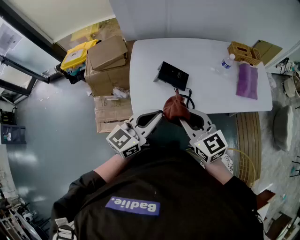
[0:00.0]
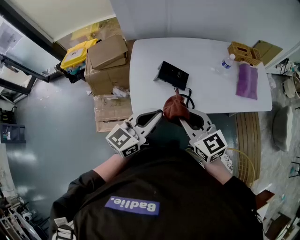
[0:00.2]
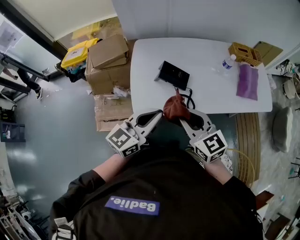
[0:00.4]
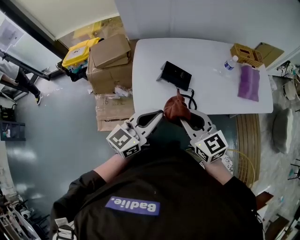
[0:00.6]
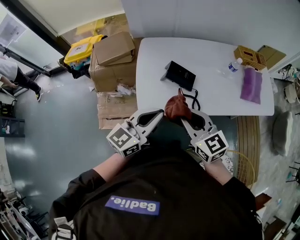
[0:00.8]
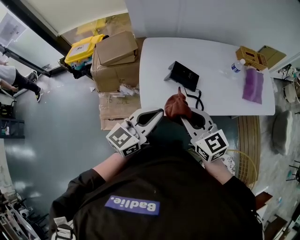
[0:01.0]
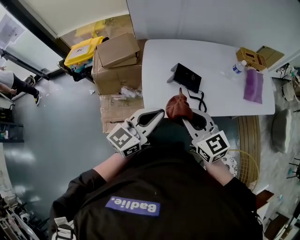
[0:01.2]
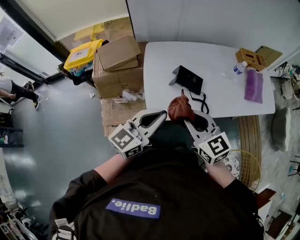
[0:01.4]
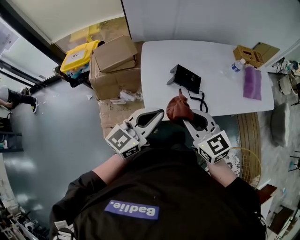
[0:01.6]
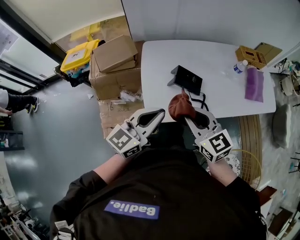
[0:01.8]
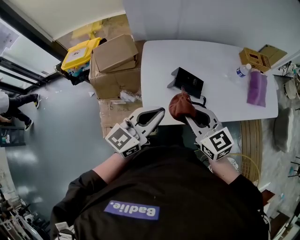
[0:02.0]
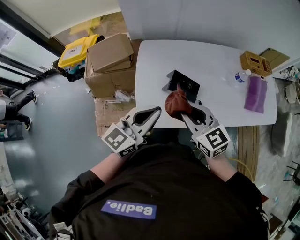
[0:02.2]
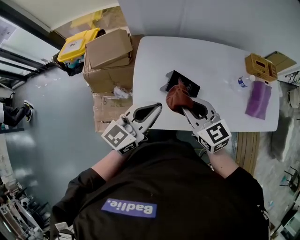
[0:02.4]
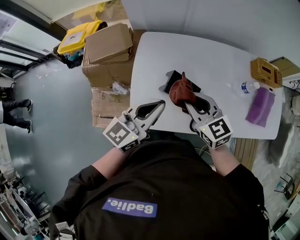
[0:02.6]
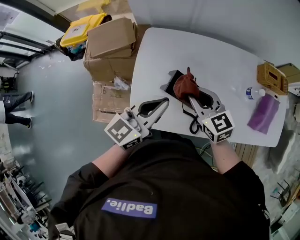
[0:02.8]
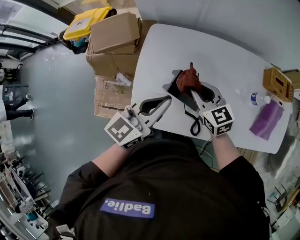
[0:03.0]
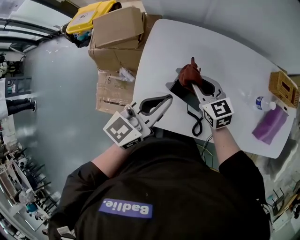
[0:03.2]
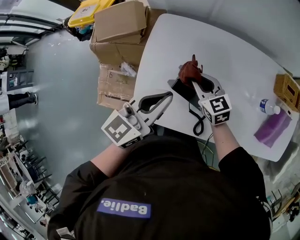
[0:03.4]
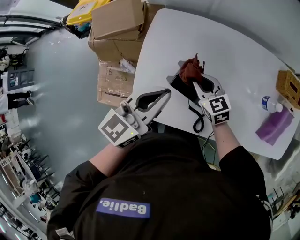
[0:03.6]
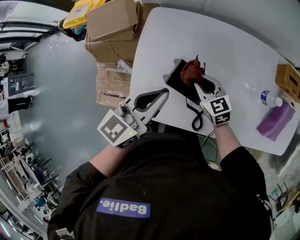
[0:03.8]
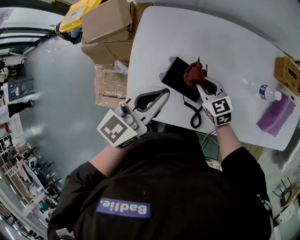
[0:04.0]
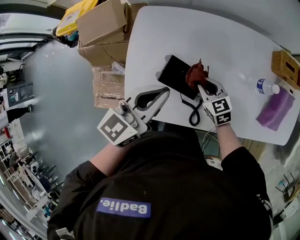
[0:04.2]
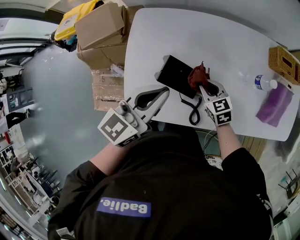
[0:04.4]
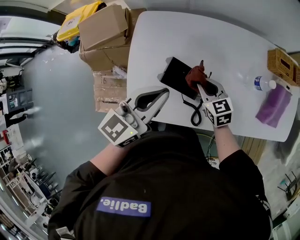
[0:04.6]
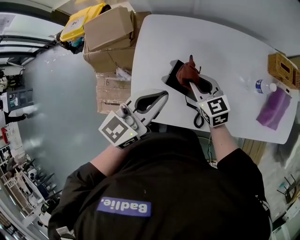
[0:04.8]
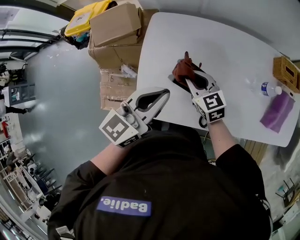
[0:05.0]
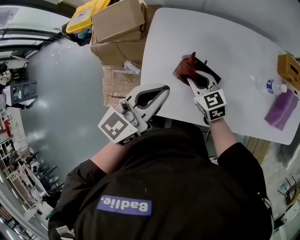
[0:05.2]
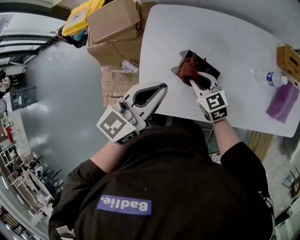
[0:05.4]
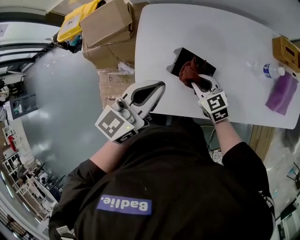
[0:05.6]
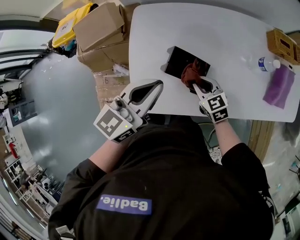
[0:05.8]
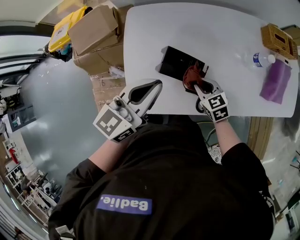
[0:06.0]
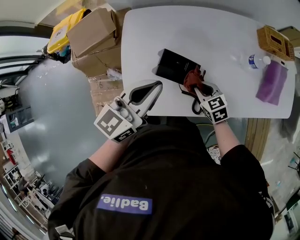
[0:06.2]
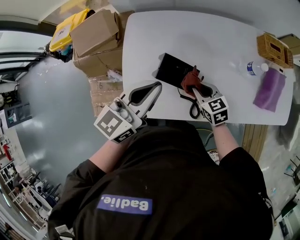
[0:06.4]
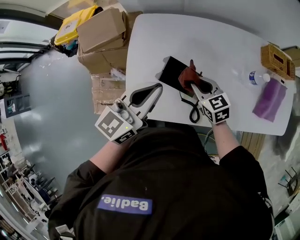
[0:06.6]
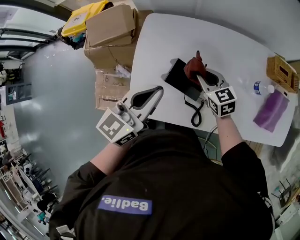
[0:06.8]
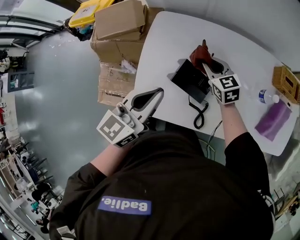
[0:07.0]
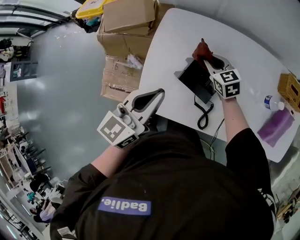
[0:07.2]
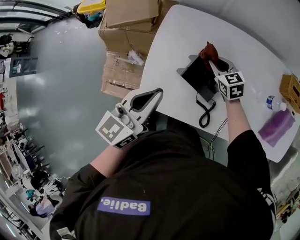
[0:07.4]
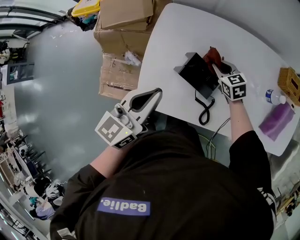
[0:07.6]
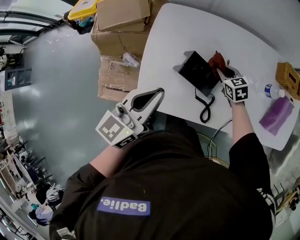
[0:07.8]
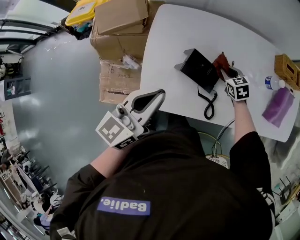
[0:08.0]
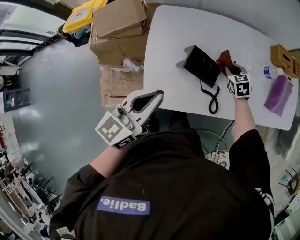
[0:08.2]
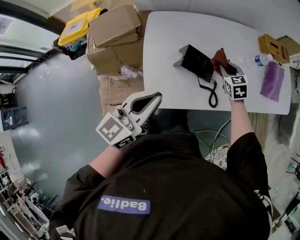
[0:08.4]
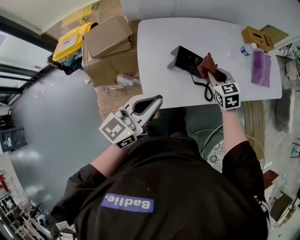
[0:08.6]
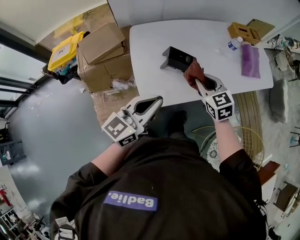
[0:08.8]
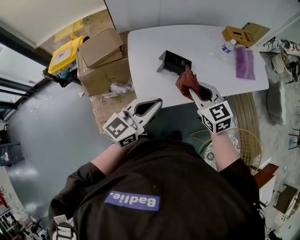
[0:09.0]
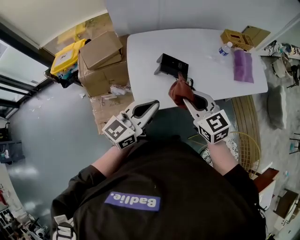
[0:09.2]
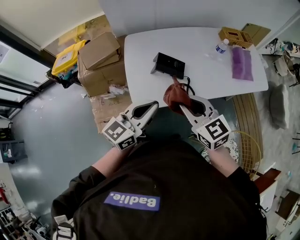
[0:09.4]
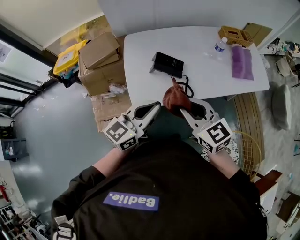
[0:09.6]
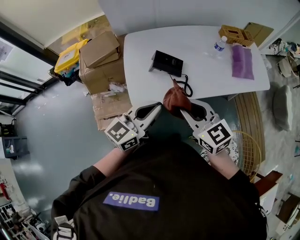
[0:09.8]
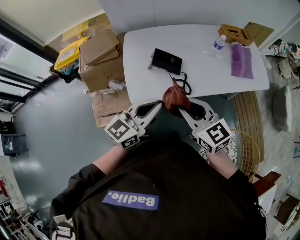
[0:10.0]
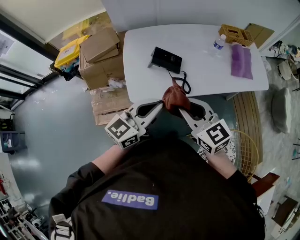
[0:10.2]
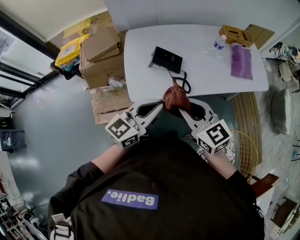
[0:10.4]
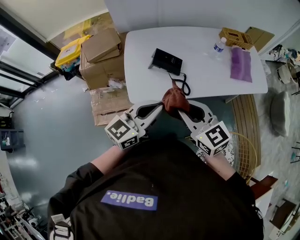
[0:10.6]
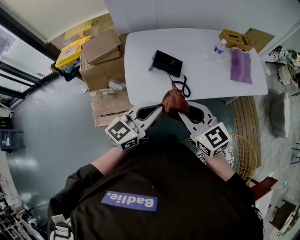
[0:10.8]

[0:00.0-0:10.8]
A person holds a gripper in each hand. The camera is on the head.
0.0 to 1.6 s: The two grippers go about 10 cm to the left.
1.6 to 3.0 s: The left gripper shifts roughly 20 cm forward and to the right. The right gripper is displaced forward and downward by about 30 cm.
3.0 to 4.6 s: The right gripper heads downward and to the right, covering roughly 10 cm.
4.6 to 6.2 s: The right gripper heads backward, covering some 5 cm, and goes to the left and returns, approximately 10 cm each way.
6.2 to 7.8 s: The right gripper is displaced forward by about 15 cm; the left gripper is displaced to the left by about 10 cm.
7.8 to 9.2 s: The left gripper shifts by approximately 15 cm, and changes its angle by some 30 degrees; the right gripper moves about 40 cm, and rotates roughly 30 degrees.
9.2 to 10.8 s: The left gripper heads to the right, covering roughly 10 cm. The right gripper shifts about 10 cm backward.

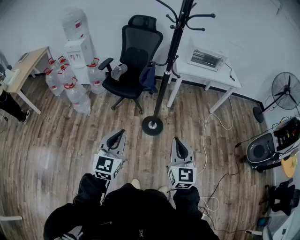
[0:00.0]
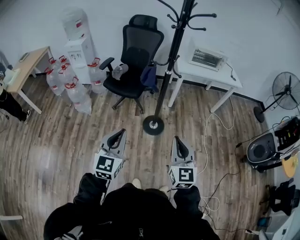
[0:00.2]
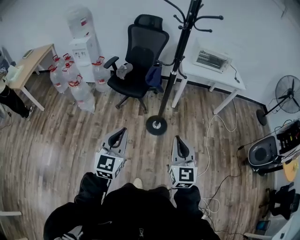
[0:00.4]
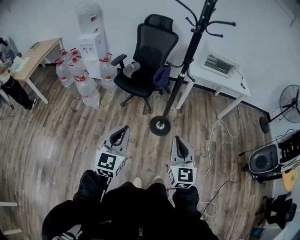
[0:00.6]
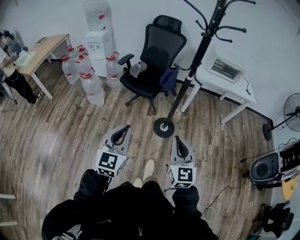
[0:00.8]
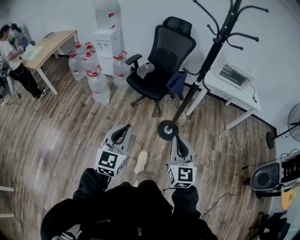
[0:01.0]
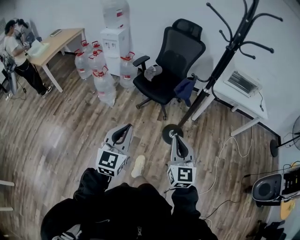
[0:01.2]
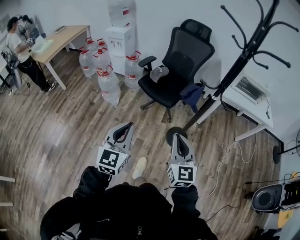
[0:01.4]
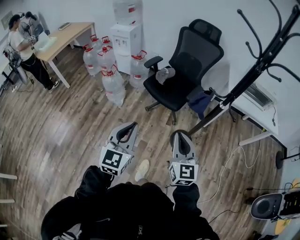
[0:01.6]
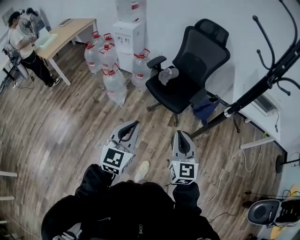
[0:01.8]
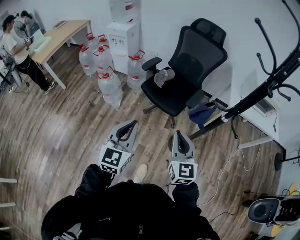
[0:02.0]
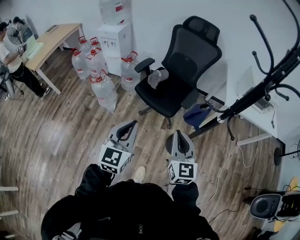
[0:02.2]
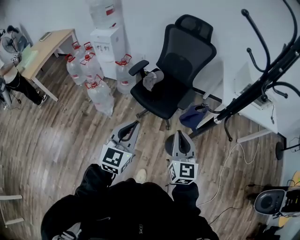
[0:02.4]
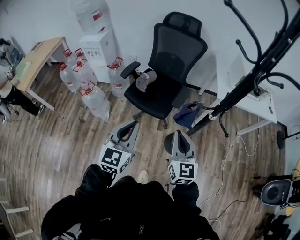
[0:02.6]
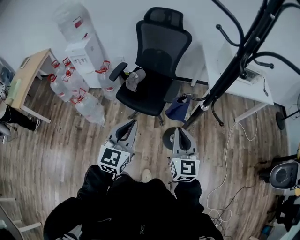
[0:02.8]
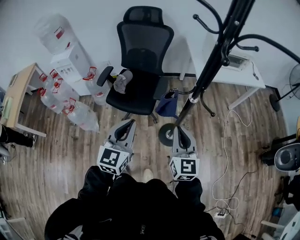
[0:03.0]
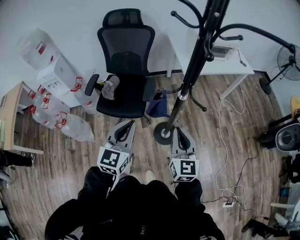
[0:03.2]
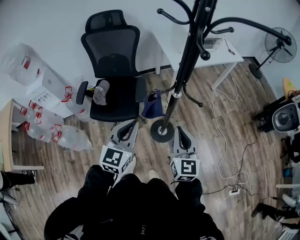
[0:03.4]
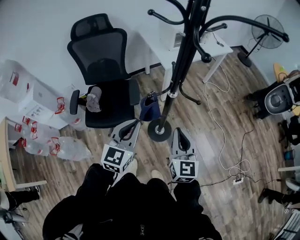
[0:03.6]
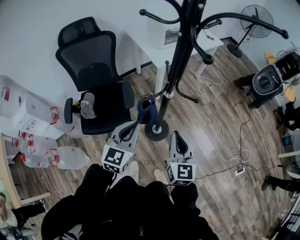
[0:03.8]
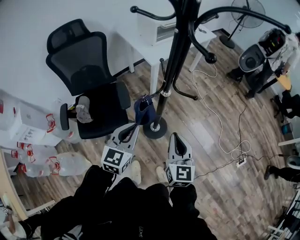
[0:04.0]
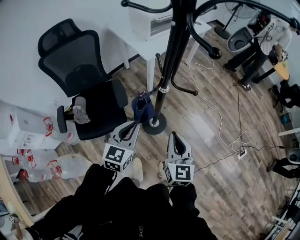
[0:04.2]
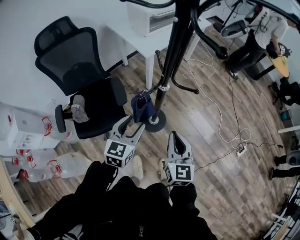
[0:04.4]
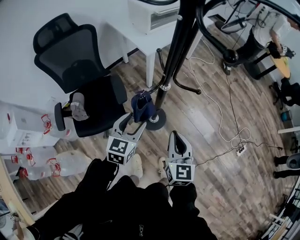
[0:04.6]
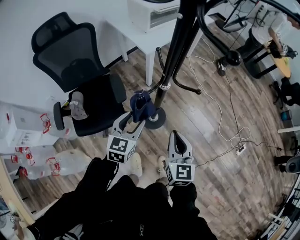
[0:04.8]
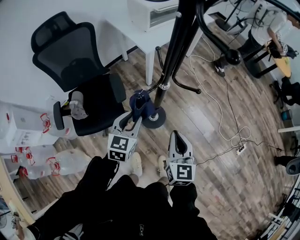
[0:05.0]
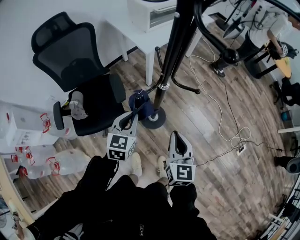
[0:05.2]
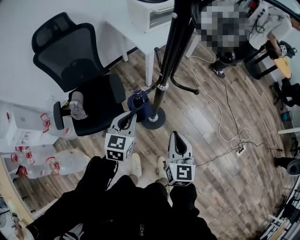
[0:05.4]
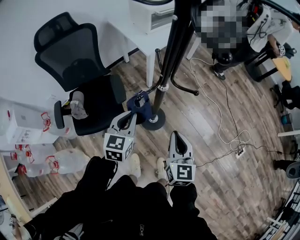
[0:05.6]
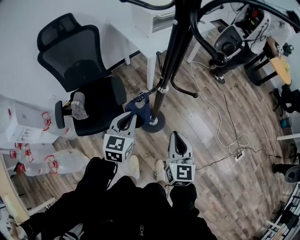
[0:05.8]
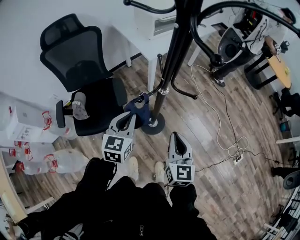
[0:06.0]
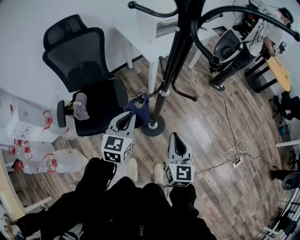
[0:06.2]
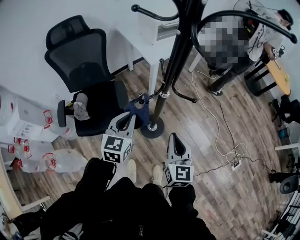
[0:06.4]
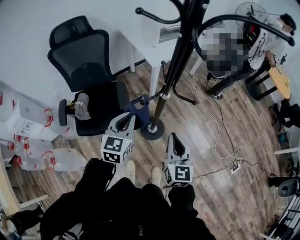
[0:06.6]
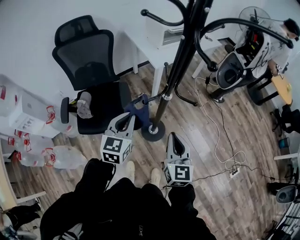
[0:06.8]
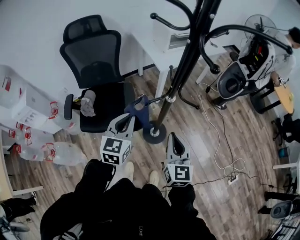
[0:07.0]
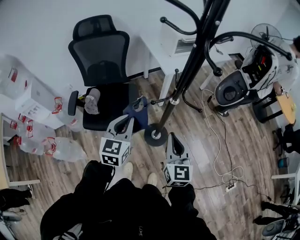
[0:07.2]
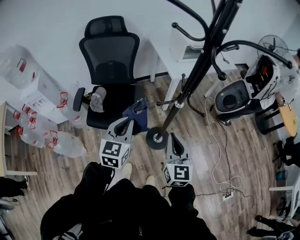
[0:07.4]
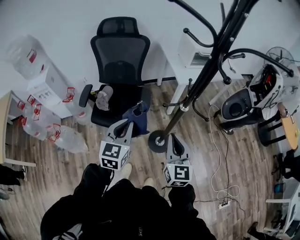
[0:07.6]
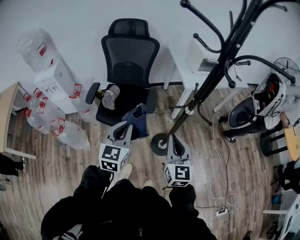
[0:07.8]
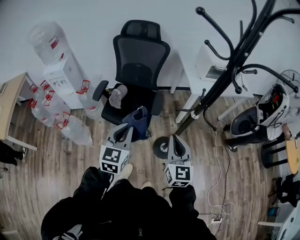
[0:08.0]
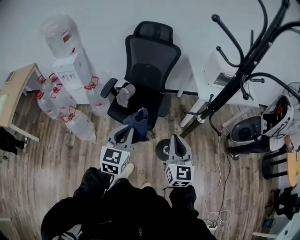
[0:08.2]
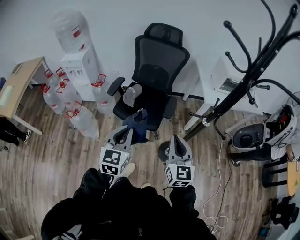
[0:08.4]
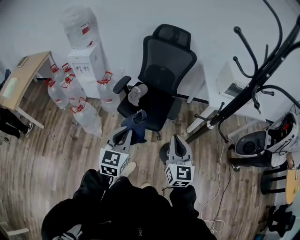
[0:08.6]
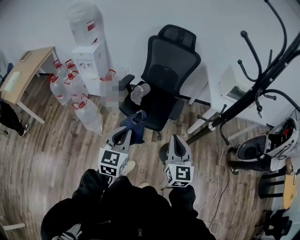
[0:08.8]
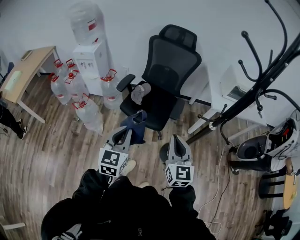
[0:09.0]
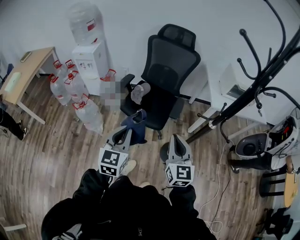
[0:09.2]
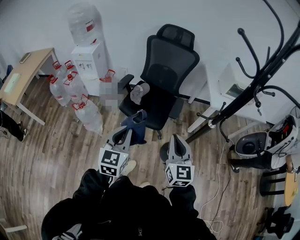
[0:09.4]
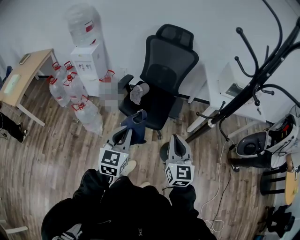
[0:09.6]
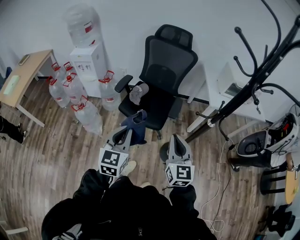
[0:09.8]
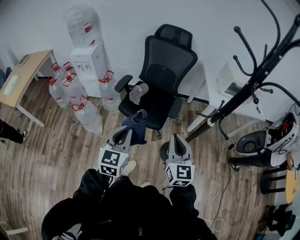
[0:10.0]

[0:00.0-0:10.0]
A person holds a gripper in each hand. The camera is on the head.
0.0 to 1.4 s: The left gripper heads to the left and forward, covering roughly 20 cm. Meanwhile the right gripper goes approximately 25 cm forward and to the left.
1.4 to 2.8 s: Both grippers travel together forward, some 25 cm.
2.8 to 4.2 s: The right gripper goes about 5 cm downward, and turns by some 50 degrees, while the left gripper moves some 20 cm, and swivels about 50 degrees.
4.2 to 5.8 s: The left gripper opens, then closes once more.
5.8 to 7.2 s: The left gripper heads upward and backward, covering approximately 10 cm; the right gripper is displaced upward by roughly 5 cm.
7.2 to 8.6 s: The right gripper changes place by roughly 15 cm, and changes its angle by about 30 degrees. The left gripper shifts by some 25 cm, and rotates some 30 degrees.
8.6 to 10.0 s: The grippers stay close to where they were, moving slightly.

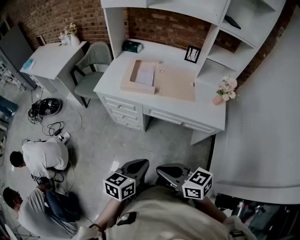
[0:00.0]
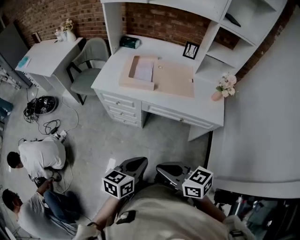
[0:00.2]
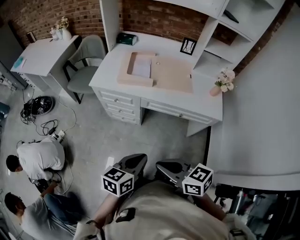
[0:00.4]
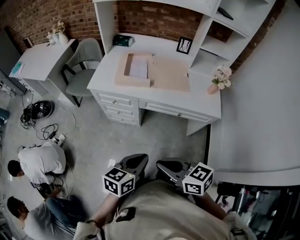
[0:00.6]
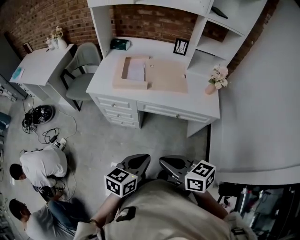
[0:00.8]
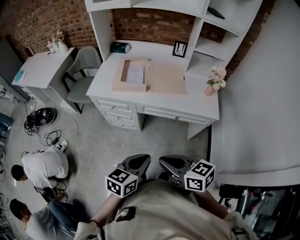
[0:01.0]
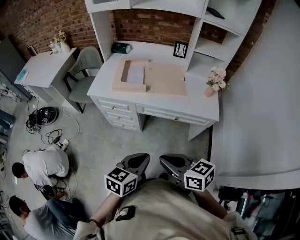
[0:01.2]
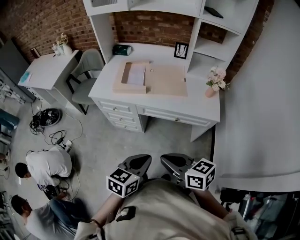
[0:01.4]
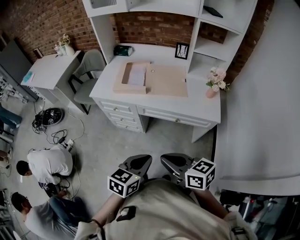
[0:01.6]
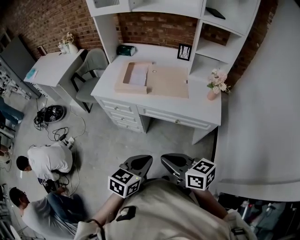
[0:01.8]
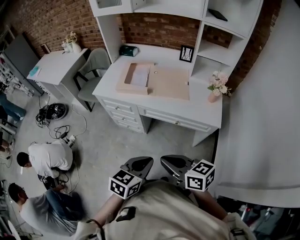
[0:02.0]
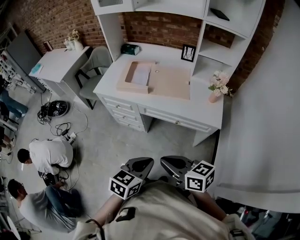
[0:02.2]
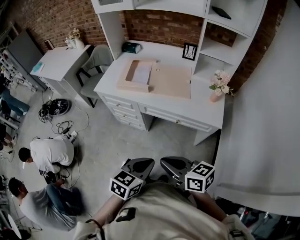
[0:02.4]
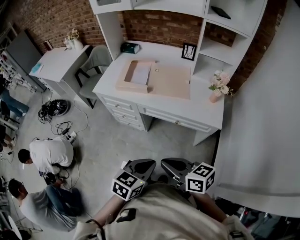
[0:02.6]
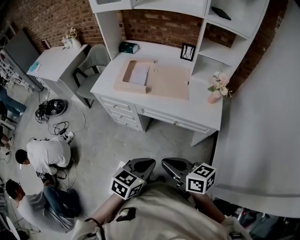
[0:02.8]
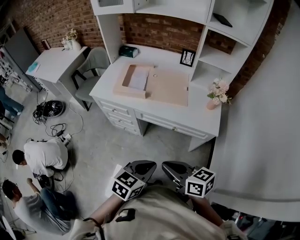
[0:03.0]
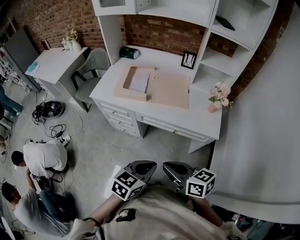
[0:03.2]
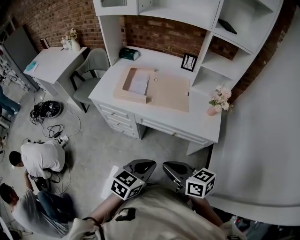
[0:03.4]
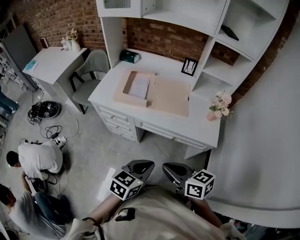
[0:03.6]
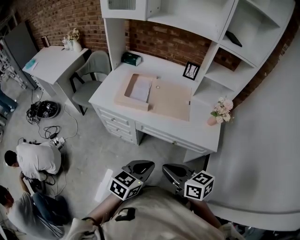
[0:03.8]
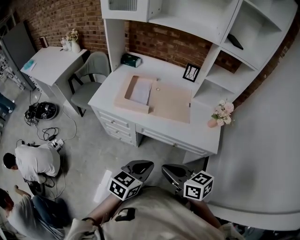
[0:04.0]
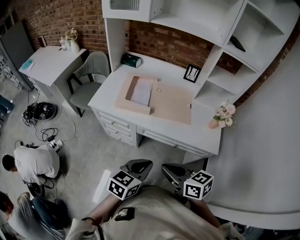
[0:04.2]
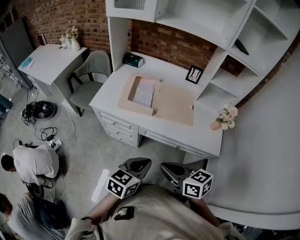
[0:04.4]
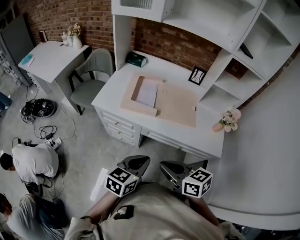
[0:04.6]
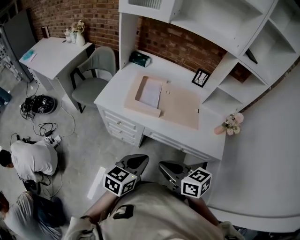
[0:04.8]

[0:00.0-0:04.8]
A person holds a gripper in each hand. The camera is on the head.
0.0 to 1.6 s: The right gripper is displaced to the right by about 5 cm.
1.6 to 3.2 s: The left gripper heads to the right, covering roughly 5 cm; the right gripper moves about 5 cm.
3.2 to 4.8 s: Both grippers travel together to the left and forward, roughly 20 cm.
